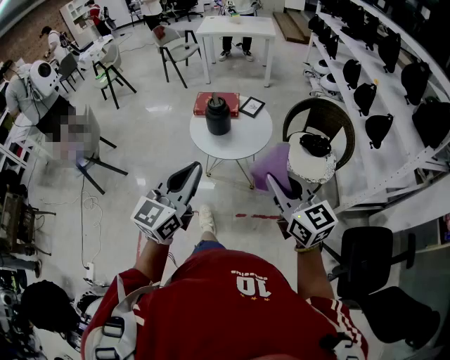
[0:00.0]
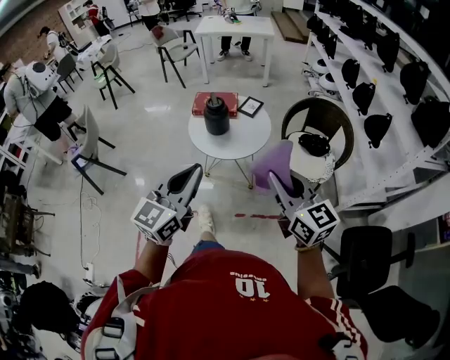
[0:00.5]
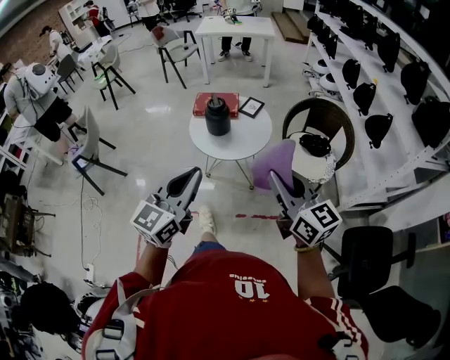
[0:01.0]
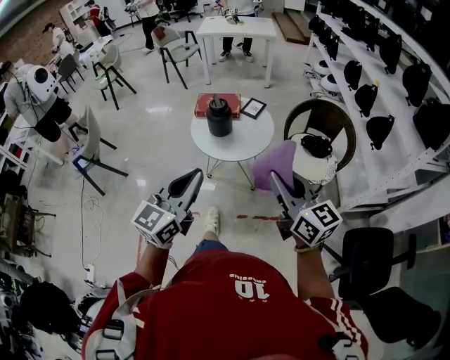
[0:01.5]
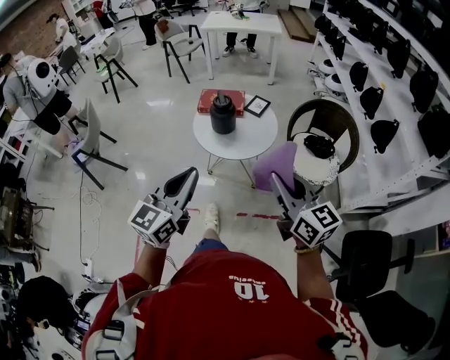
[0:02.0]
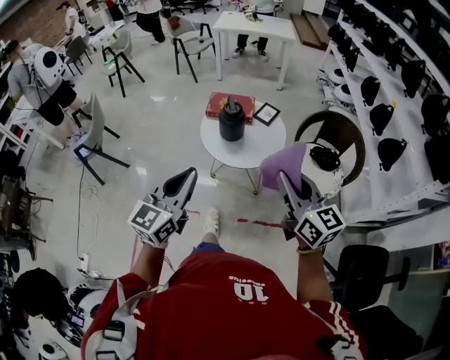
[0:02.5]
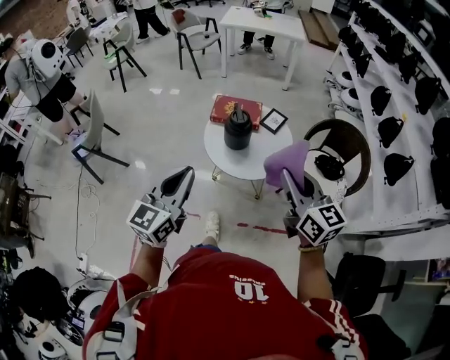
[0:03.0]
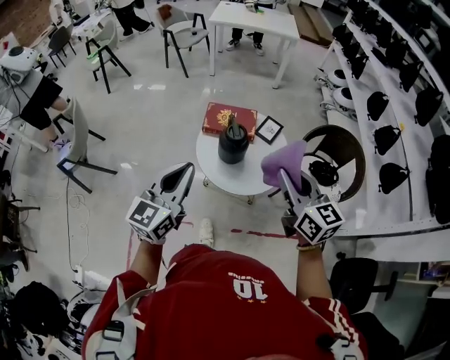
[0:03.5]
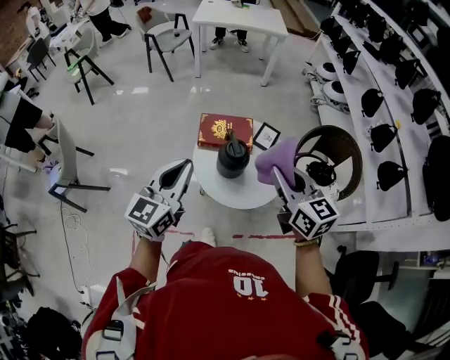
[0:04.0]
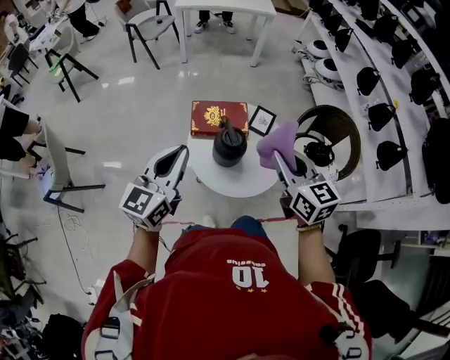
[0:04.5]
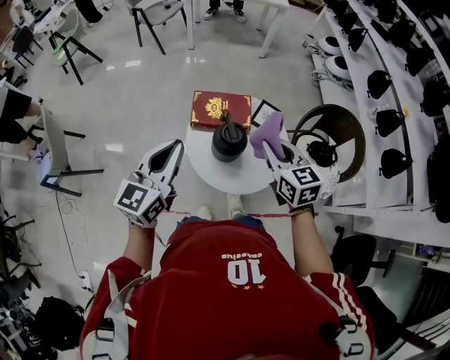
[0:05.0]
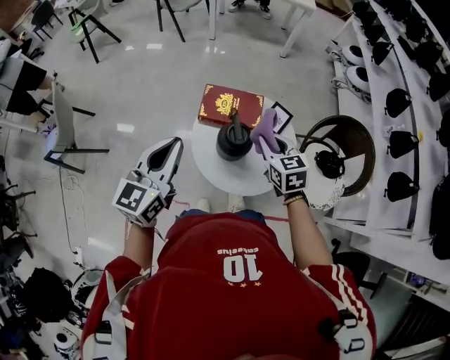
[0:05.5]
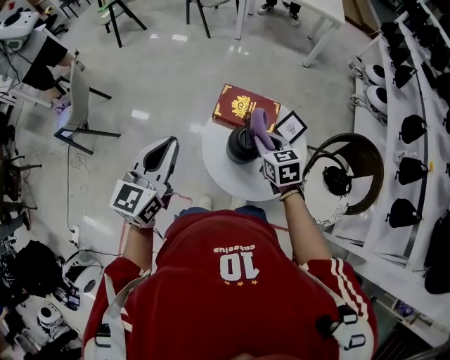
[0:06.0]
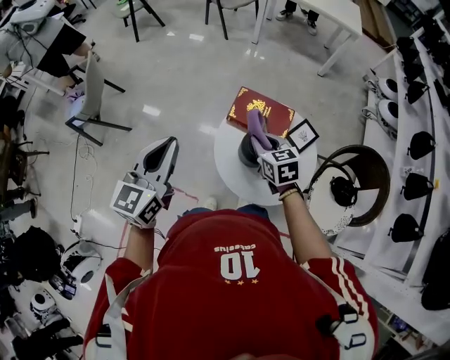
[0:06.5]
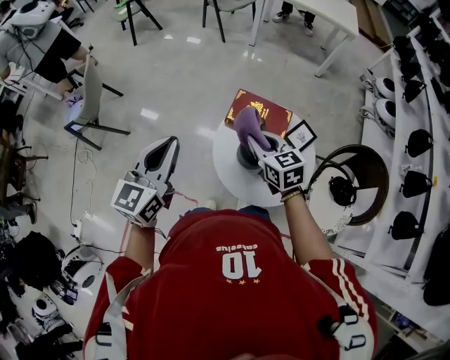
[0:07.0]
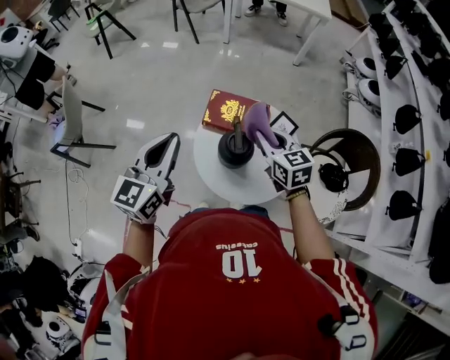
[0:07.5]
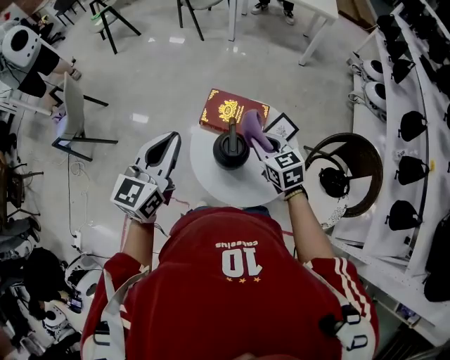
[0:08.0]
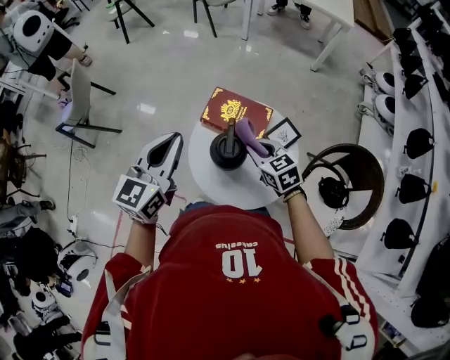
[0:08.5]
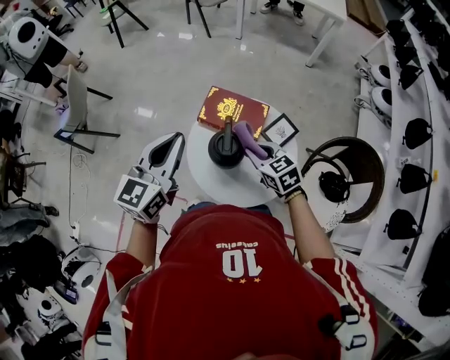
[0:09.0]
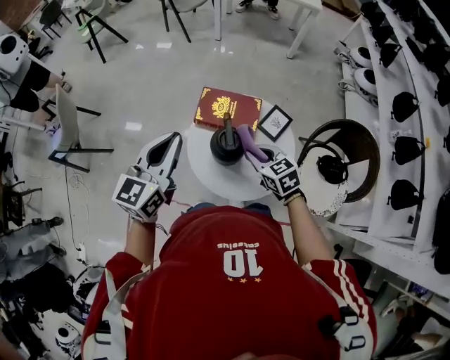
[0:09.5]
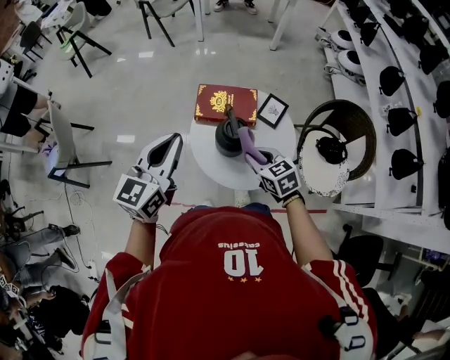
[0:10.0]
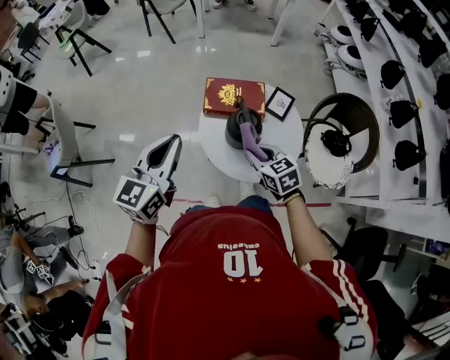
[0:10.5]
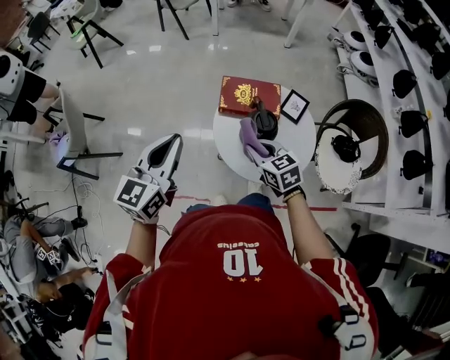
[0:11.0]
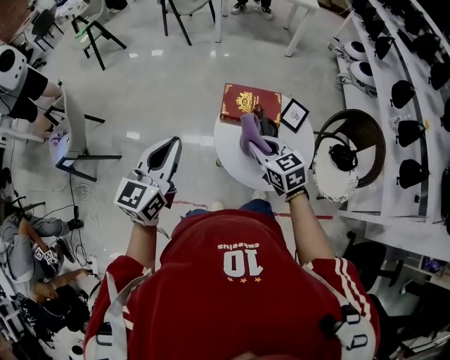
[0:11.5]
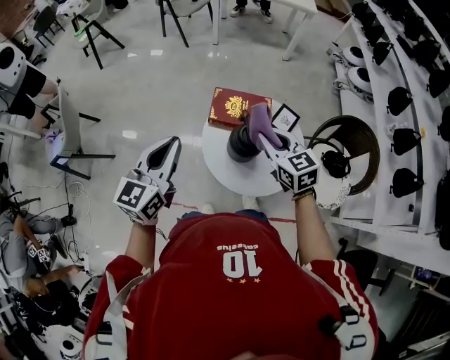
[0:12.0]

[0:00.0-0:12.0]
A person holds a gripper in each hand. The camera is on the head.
0:00.0 to 0:02.0: There are only small adjustments of the grippers.
0:02.0 to 0:04.0: Both grippers travel together forward, roughly 35 cm.
0:04.0 to 0:06.0: The left gripper changes place by approximately 5 cm. The right gripper heads downward and forward, covering about 25 cm, and changes its angle by approximately 30 degrees.
0:06.0 to 0:08.0: The left gripper heads to the right, covering about 5 cm.
0:08.0 to 0:10.0: The right gripper shifts some 10 cm backward and to the left.
0:10.0 to 0:12.0: The right gripper goes roughly 10 cm upward and forward. Meanwhile the left gripper heads to the left, covering about 5 cm.

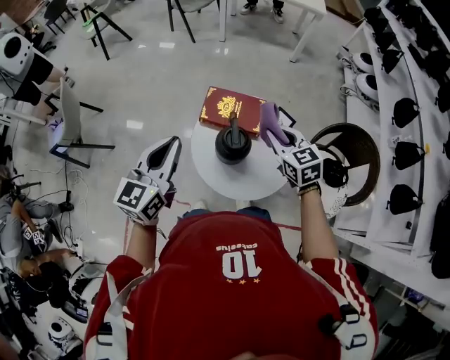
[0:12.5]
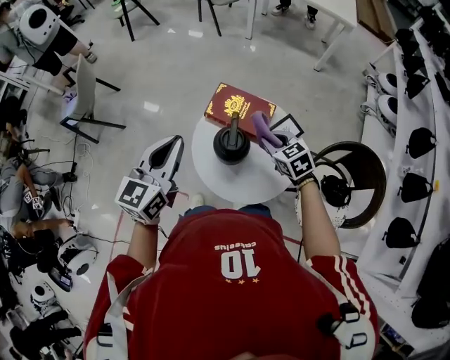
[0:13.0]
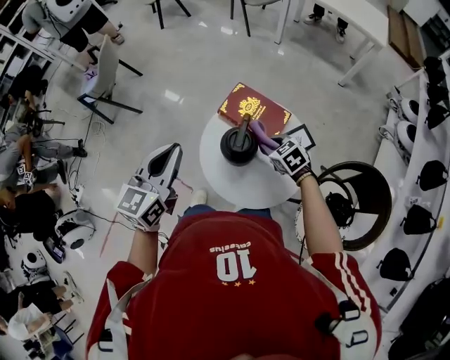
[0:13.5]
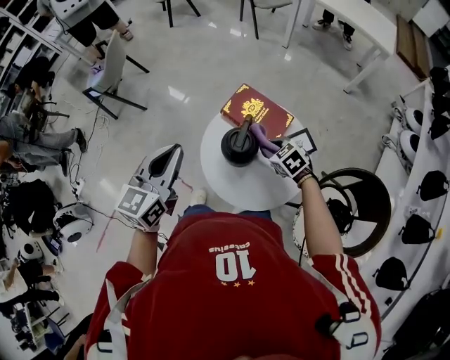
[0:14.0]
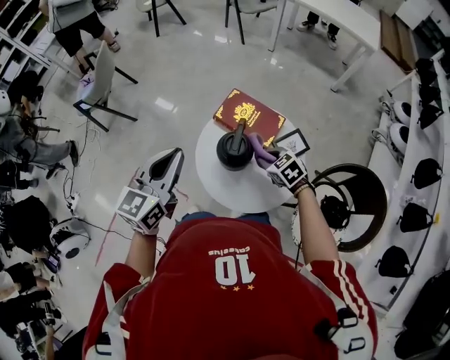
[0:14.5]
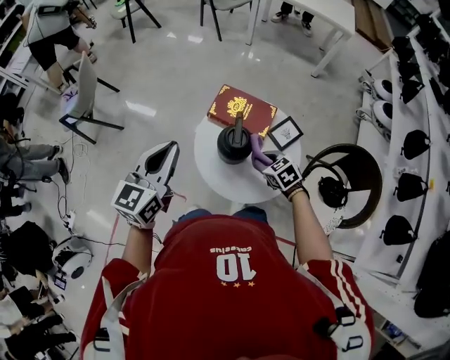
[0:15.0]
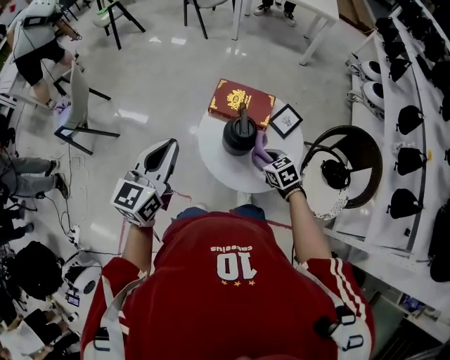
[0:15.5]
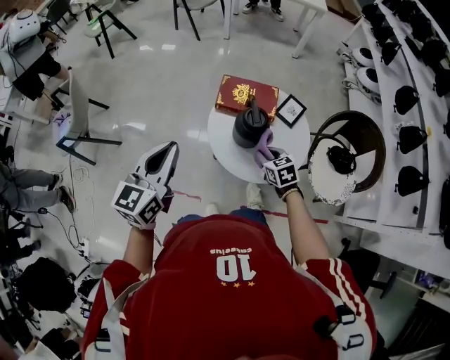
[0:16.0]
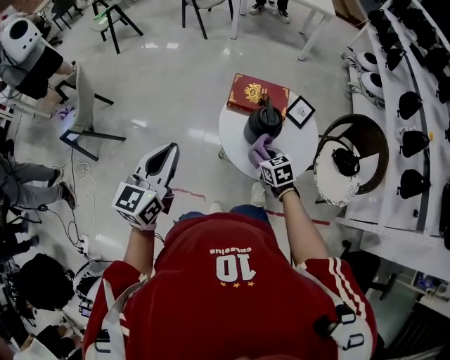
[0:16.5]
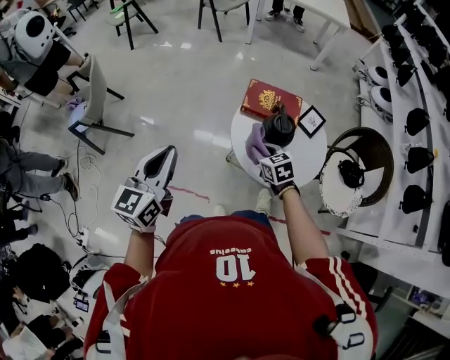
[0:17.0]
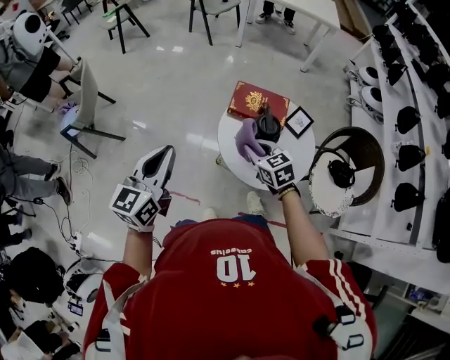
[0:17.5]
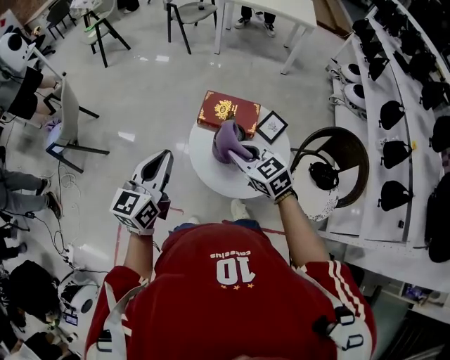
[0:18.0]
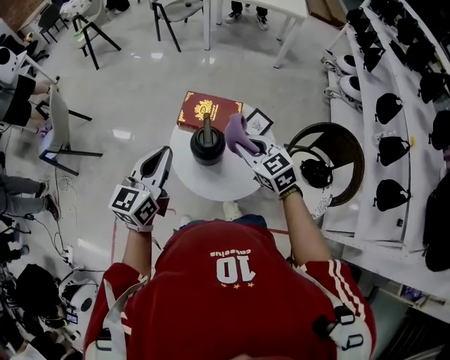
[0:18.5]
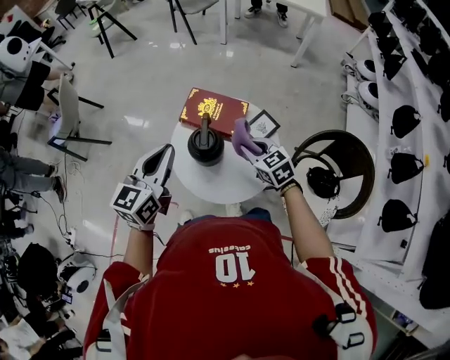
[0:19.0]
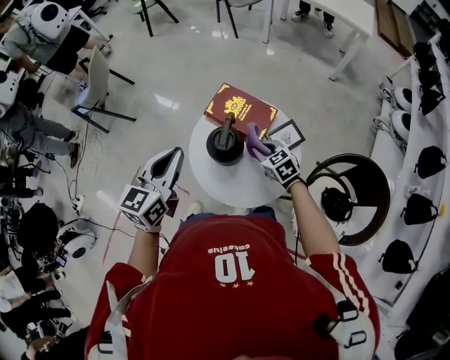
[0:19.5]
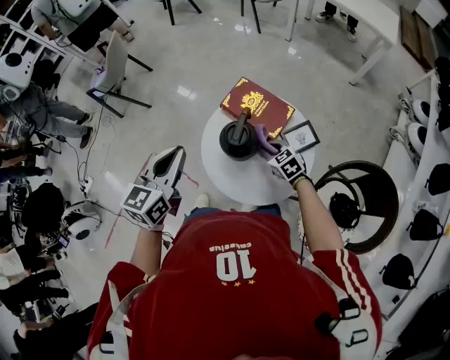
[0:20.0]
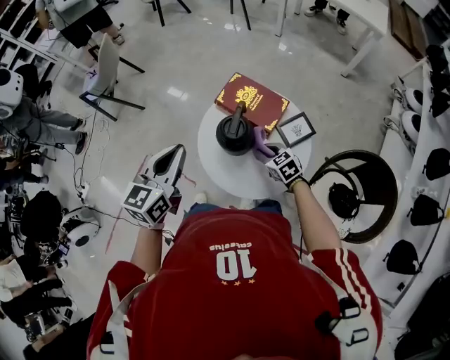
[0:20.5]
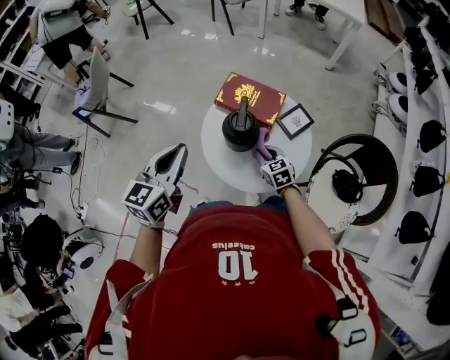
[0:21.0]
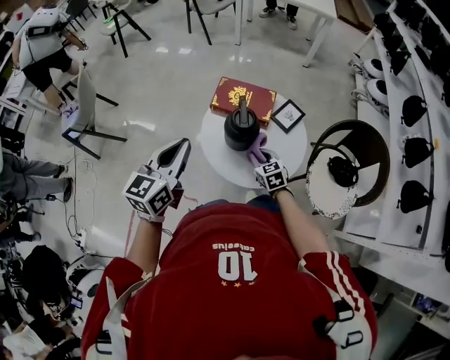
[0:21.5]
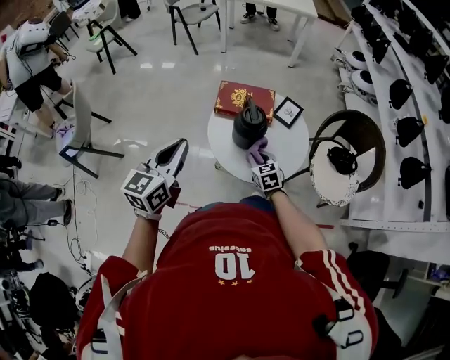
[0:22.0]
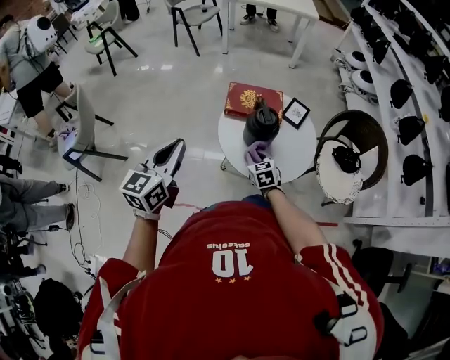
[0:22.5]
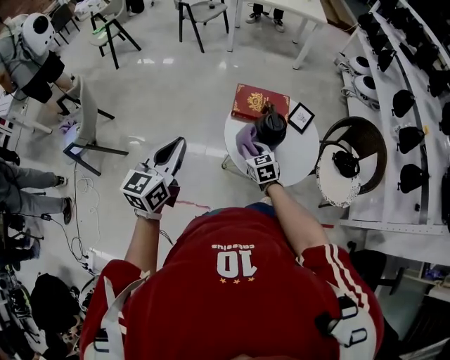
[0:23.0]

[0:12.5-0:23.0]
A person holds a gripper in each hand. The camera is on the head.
0:12.5 to 0:14.5: The right gripper is displaced downward by roughly 15 cm, and swivels some 40 degrees; the left gripper shifts by roughly 5 cm.
0:14.5 to 0:16.5: The right gripper ends up some 20 cm from where it was, and turns by some 40 degrees. Meanwhile the left gripper changes place by some 20 cm.
0:16.5 to 0:19.0: The right gripper heads to the right and upward, covering about 20 cm, and turns by about 20 degrees. Meanwhile the left gripper is displaced to the right by approximately 25 cm.
0:19.0 to 0:21.0: The right gripper is displaced downward and to the left by approximately 15 cm; the left gripper travels to the left by roughly 10 cm.
0:21.0 to 0:23.0: Both grippers move to the left, roughly 20 cm. The right gripper rotates approximately 20 degrees.

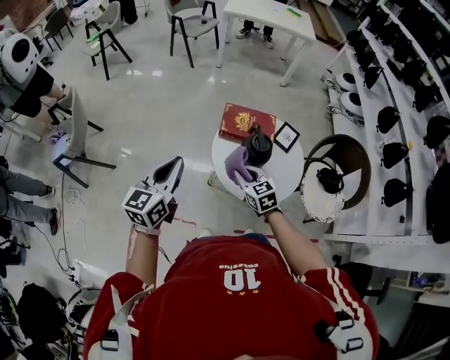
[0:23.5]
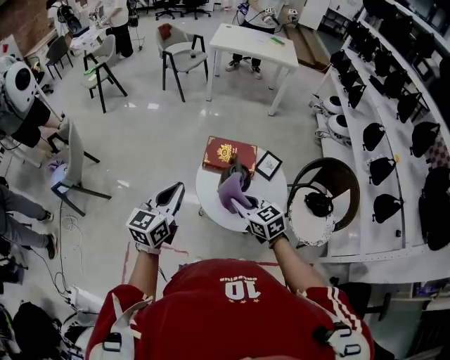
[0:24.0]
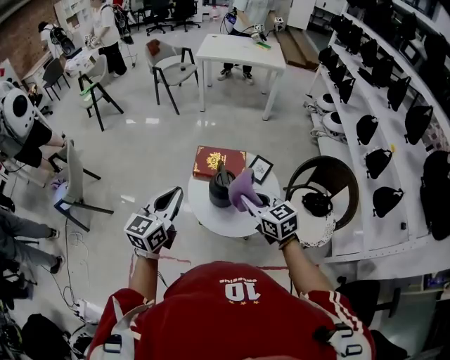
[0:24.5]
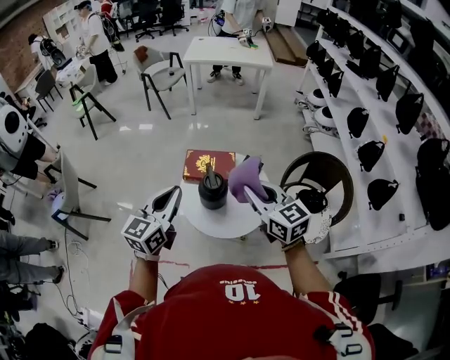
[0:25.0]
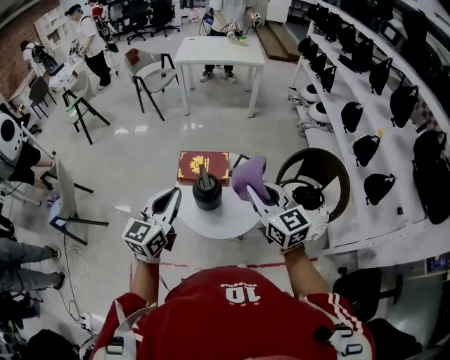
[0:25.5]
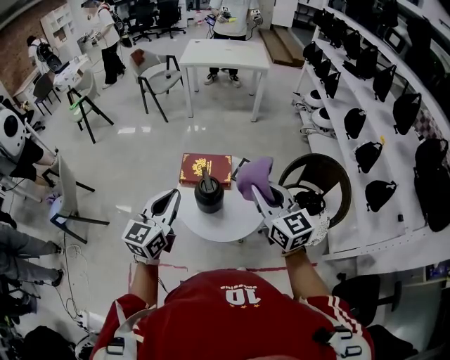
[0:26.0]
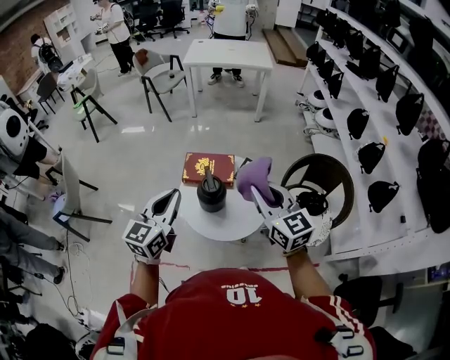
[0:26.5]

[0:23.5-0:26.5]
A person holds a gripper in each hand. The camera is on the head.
0:23.5 to 0:25.0: The left gripper moves to the right and upward, approximately 20 cm, while the right gripper moves upward and to the right, approximately 30 cm, and changes its angle by roughly 20 degrees.
0:25.0 to 0:26.5: The grippers move only a little.

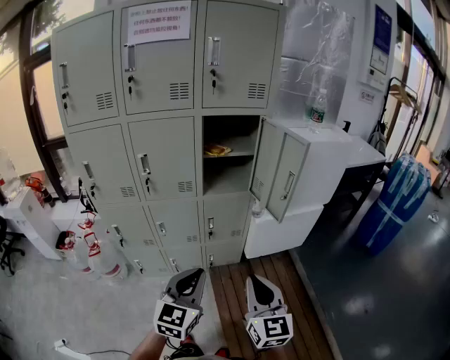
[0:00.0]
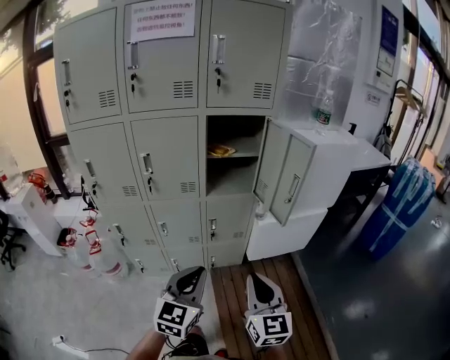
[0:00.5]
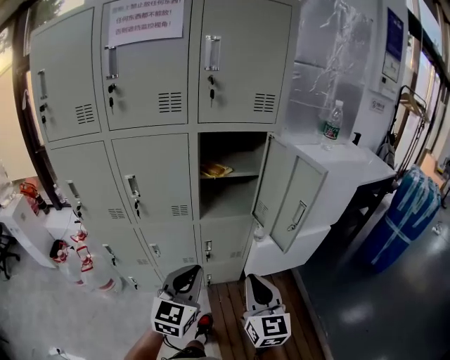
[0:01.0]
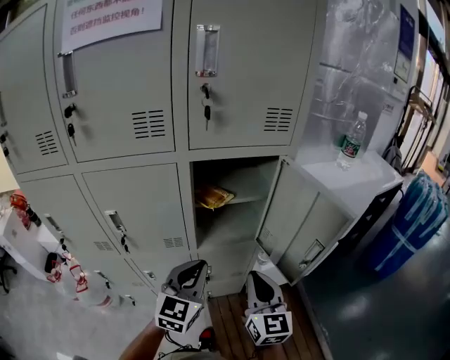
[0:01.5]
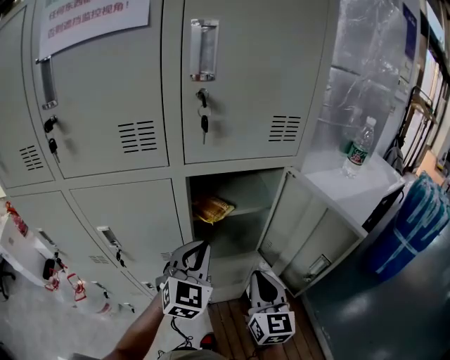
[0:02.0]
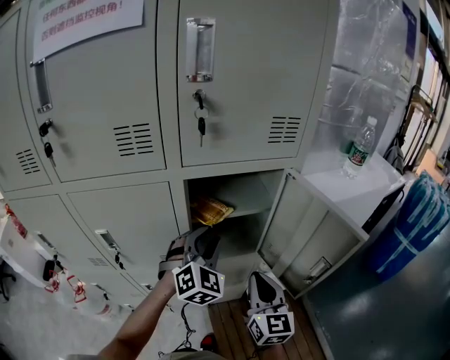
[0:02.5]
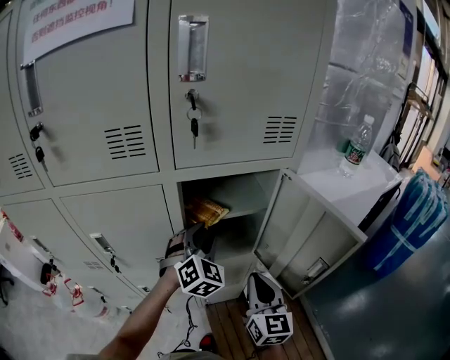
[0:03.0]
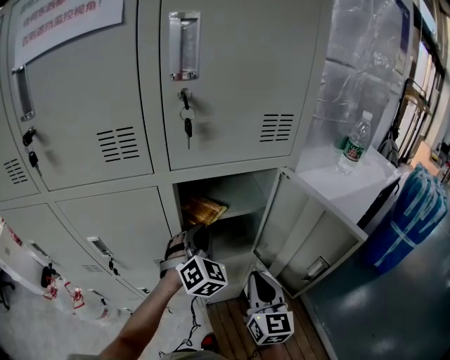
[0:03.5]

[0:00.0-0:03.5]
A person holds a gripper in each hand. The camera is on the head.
0:00.0 to 0:02.0: The grippers both shift forward by approximately 40 cm. The left gripper changes its angle by roughly 20 degrees.
0:02.0 to 0:03.5: The left gripper shifts some 10 cm forward, swivels some 20 degrees, and opens and closes again.
